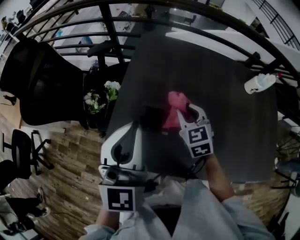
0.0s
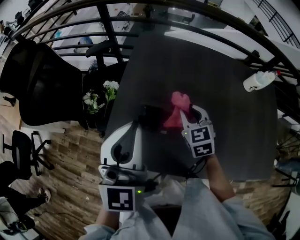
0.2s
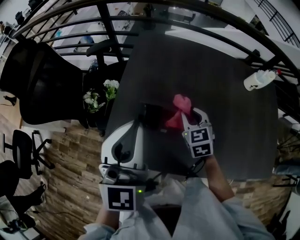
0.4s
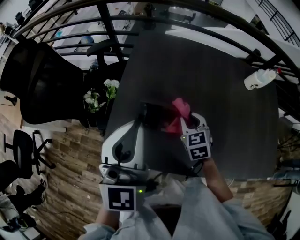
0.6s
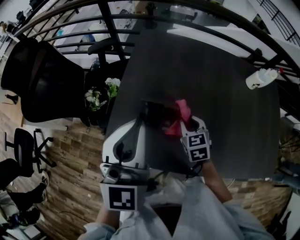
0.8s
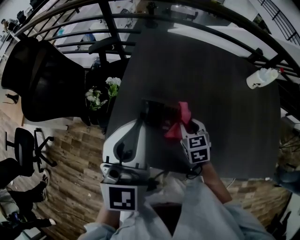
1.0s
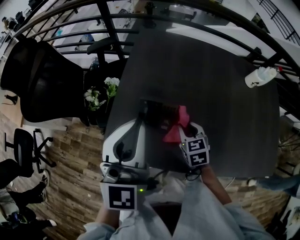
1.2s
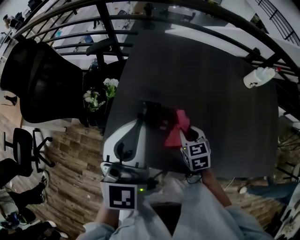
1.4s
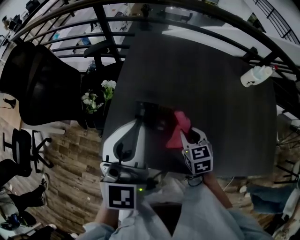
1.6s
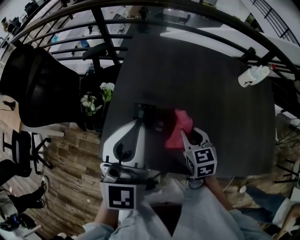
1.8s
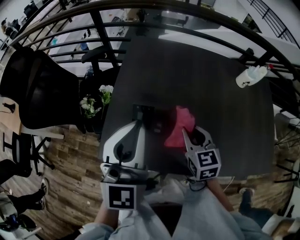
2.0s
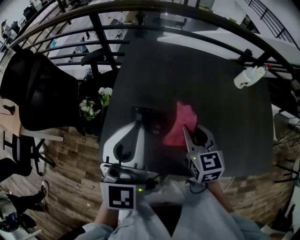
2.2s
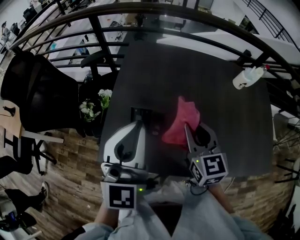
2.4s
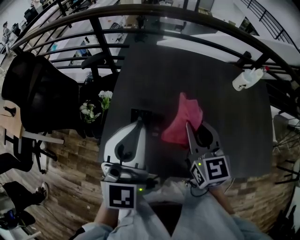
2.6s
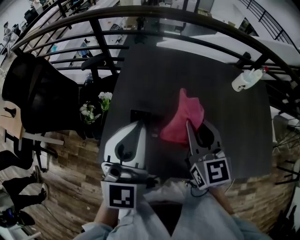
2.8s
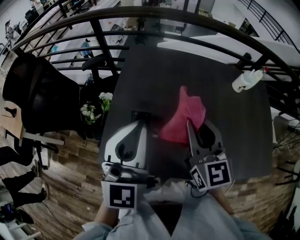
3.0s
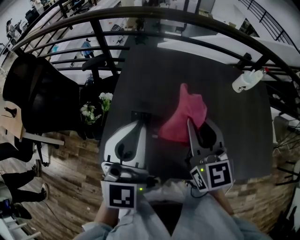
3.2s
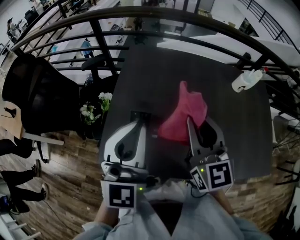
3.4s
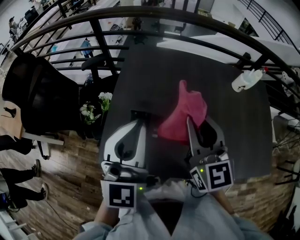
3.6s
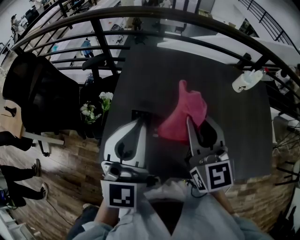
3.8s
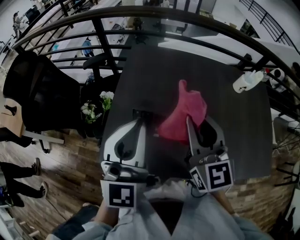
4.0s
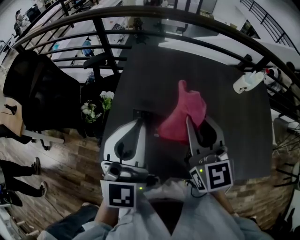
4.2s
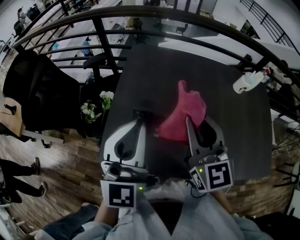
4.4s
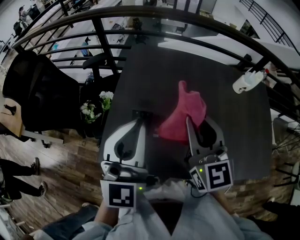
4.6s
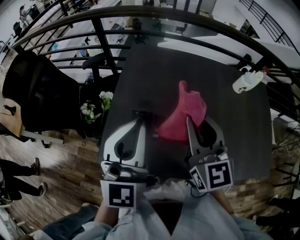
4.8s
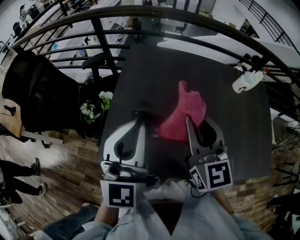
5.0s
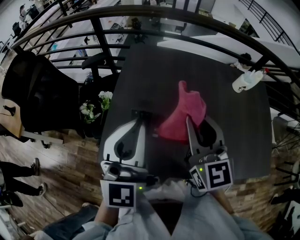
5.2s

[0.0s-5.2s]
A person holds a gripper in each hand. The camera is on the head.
0.0s to 1.8s: The right gripper heads backward and to the right, covering some 10 cm.
1.8s to 3.4s: The right gripper heads upward, covering roughly 20 cm, and tilts its fingers about 30 degrees upward.
3.4s to 5.2s: Neither gripper changes place.

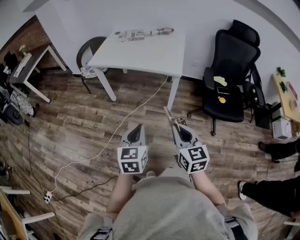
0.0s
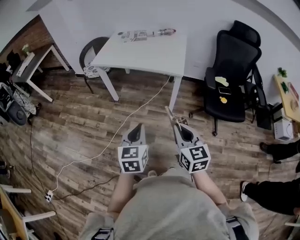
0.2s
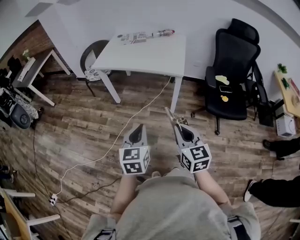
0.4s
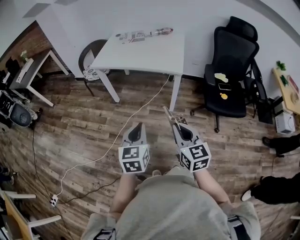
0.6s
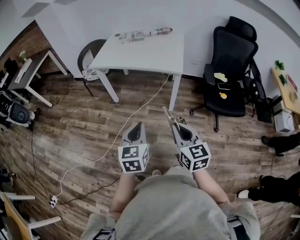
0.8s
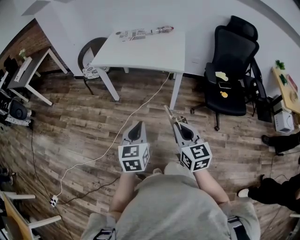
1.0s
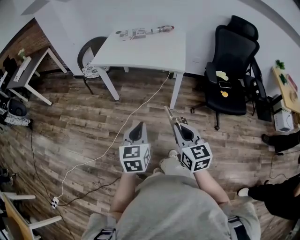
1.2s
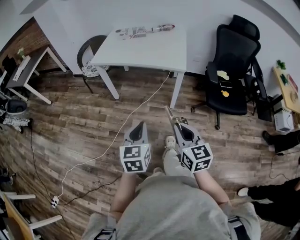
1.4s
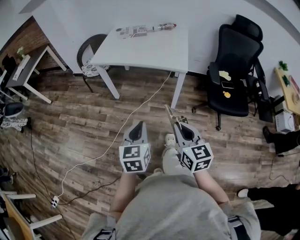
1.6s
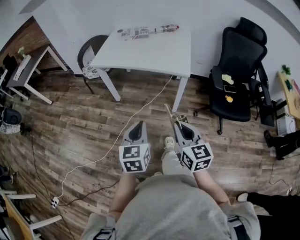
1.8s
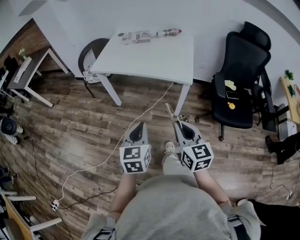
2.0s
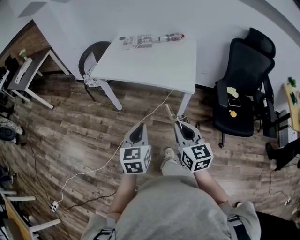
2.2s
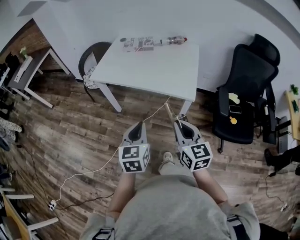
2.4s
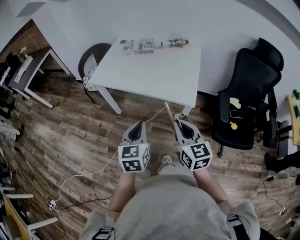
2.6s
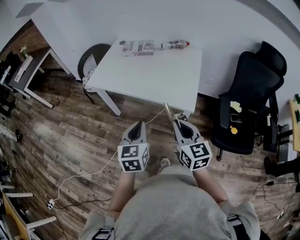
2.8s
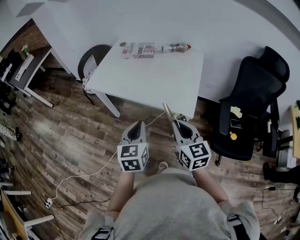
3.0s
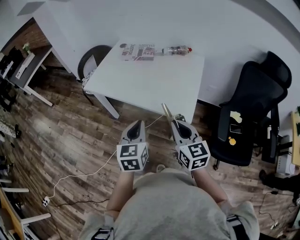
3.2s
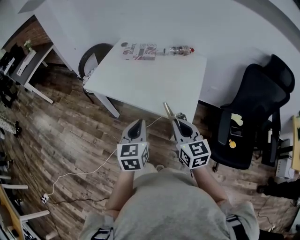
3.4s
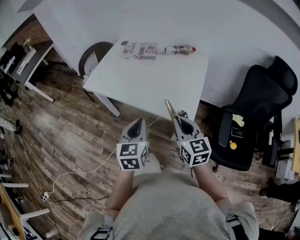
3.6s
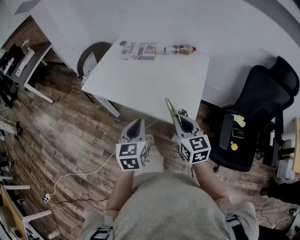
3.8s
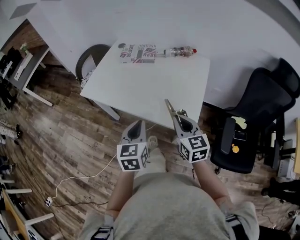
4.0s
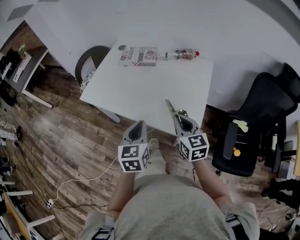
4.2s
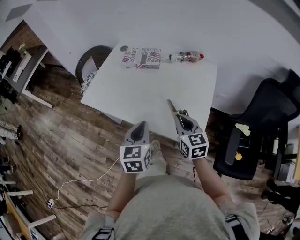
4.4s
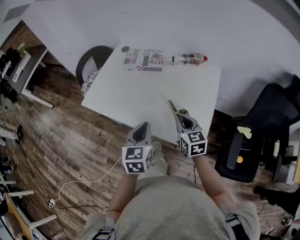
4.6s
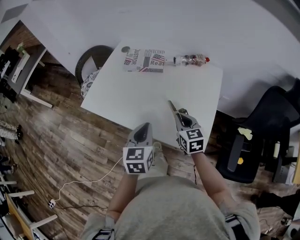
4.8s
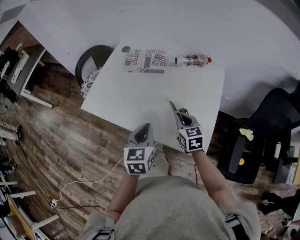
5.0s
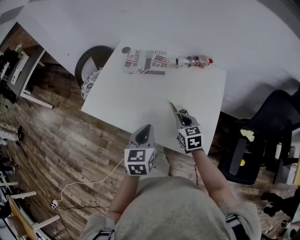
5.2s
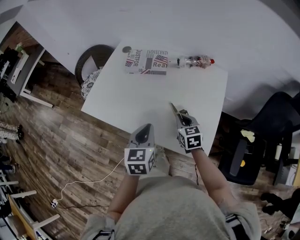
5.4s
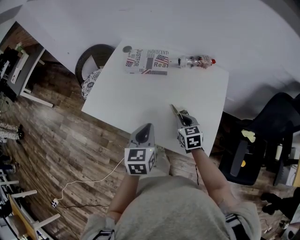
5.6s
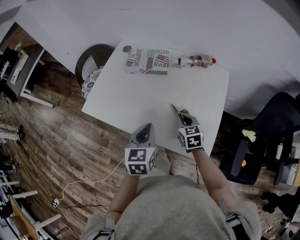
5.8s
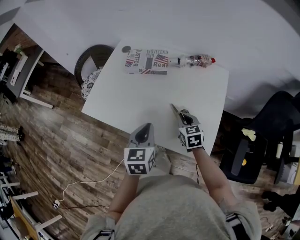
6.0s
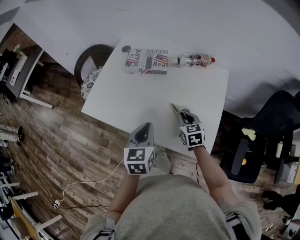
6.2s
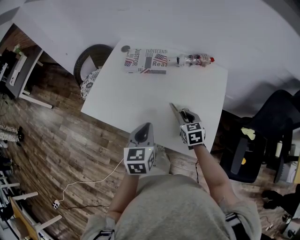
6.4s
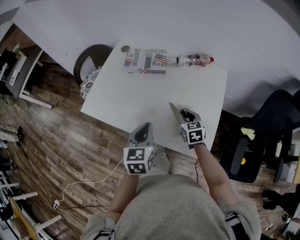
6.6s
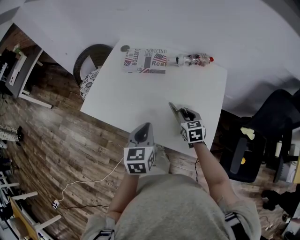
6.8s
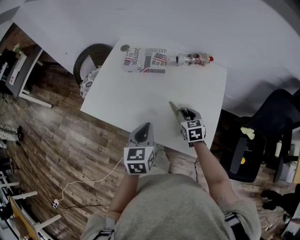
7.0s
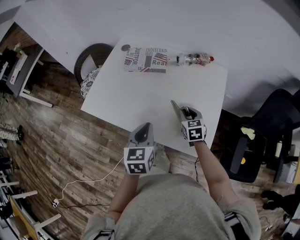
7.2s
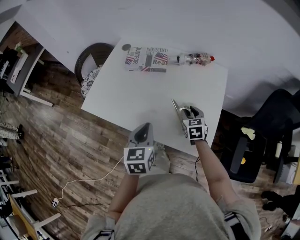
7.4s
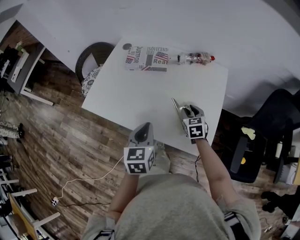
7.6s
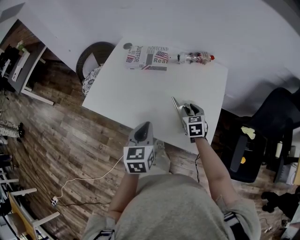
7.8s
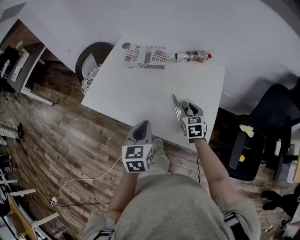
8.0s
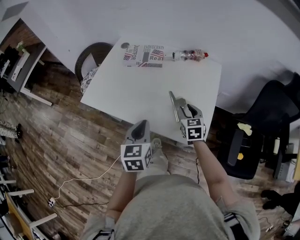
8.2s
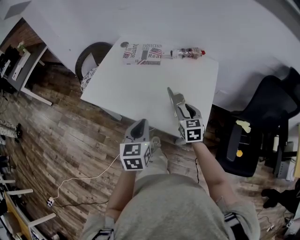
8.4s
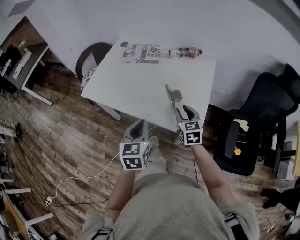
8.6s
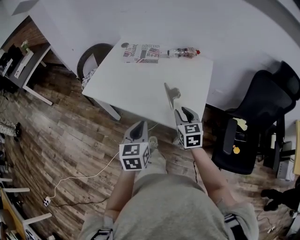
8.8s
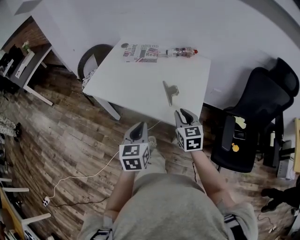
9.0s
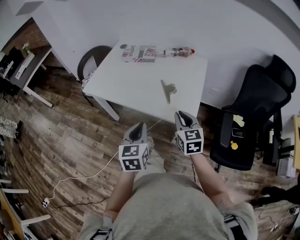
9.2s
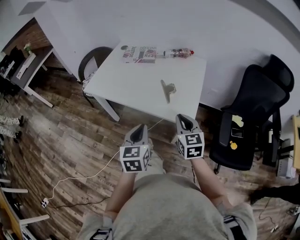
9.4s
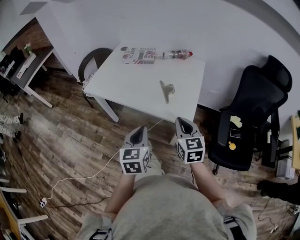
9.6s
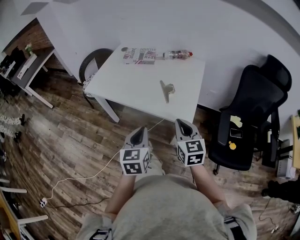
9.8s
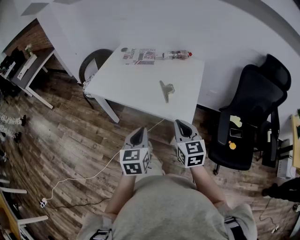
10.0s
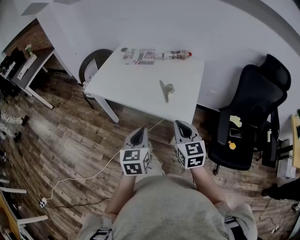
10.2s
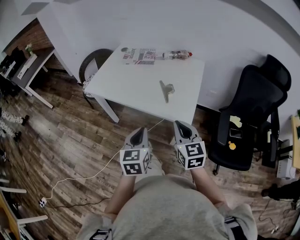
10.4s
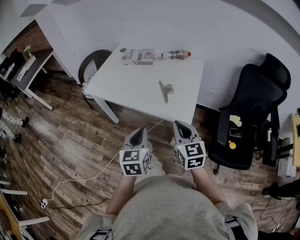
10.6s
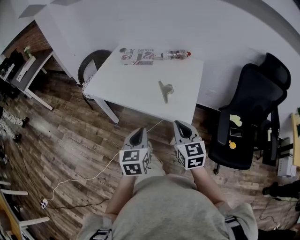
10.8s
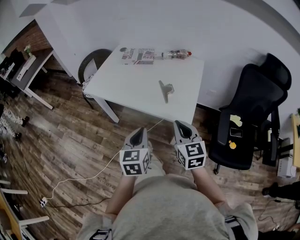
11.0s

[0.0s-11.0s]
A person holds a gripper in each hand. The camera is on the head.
0.0s to 1.6s: The grippers stay close to where they were, moving slightly.
1.6s to 3.2s: Both grippers travel together forward, approximately 35 cm.
3.2s to 4.8s: The left gripper heads forward, covering some 20 cm, while the right gripper goes approximately 30 cm forward and downward.
4.8s to 6.2s: The right gripper heads downward and forward, covering roughly 10 cm.
6.2s to 7.8s: The right gripper opens up.
7.8s to 9.4s: The left gripper goes about 20 cm backward. The right gripper is displaced backward and upward by approximately 30 cm, and closes up.
9.4s to 11.0s: The right gripper ends up about 5 cm from where it was.

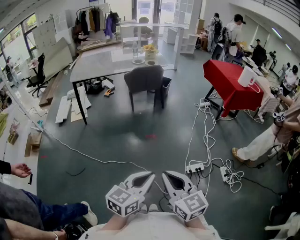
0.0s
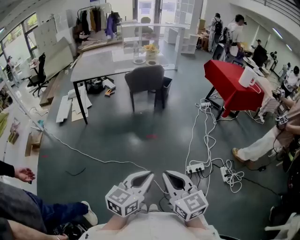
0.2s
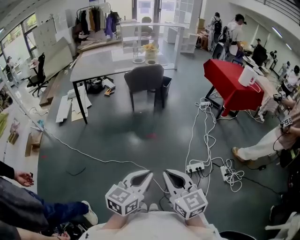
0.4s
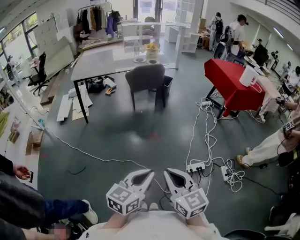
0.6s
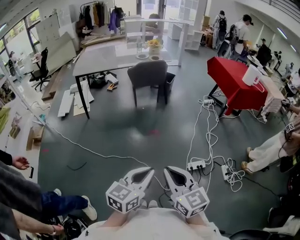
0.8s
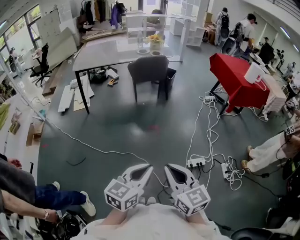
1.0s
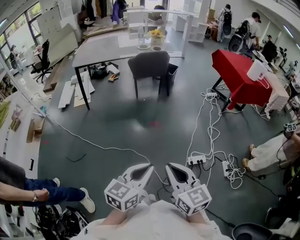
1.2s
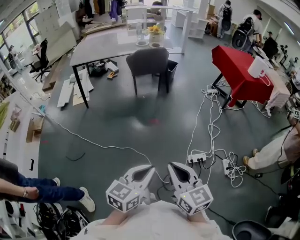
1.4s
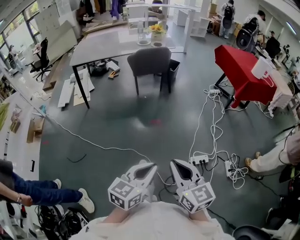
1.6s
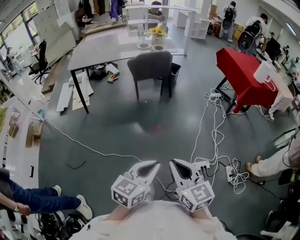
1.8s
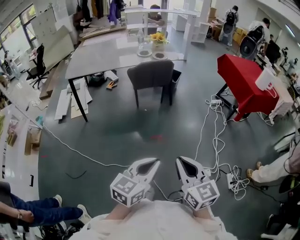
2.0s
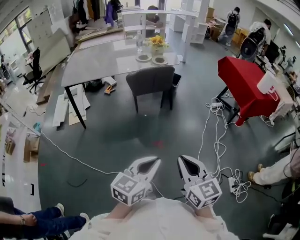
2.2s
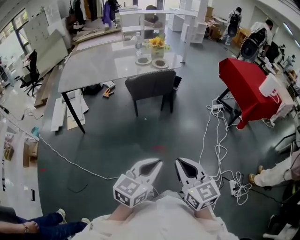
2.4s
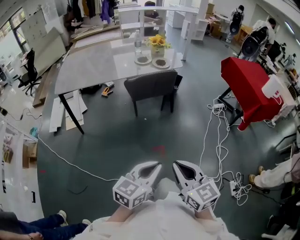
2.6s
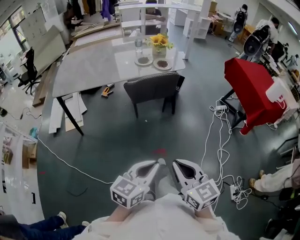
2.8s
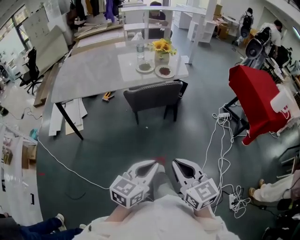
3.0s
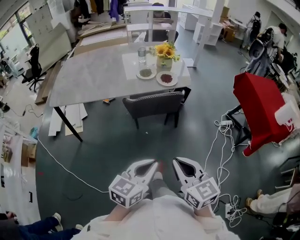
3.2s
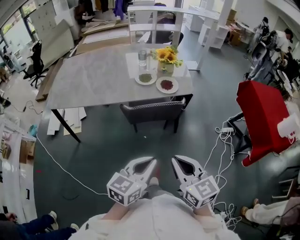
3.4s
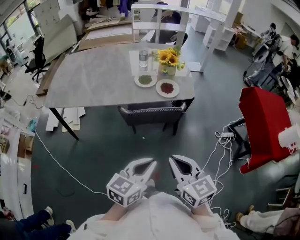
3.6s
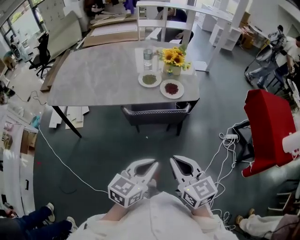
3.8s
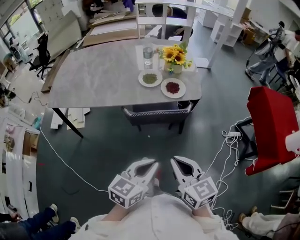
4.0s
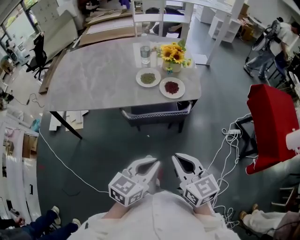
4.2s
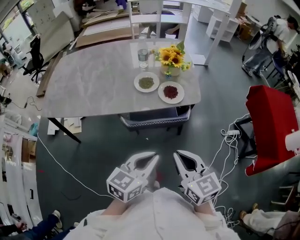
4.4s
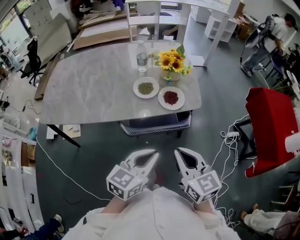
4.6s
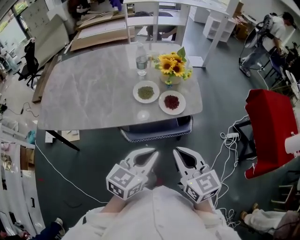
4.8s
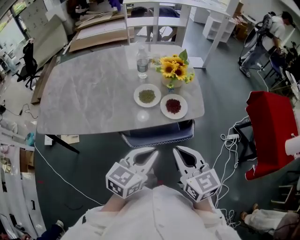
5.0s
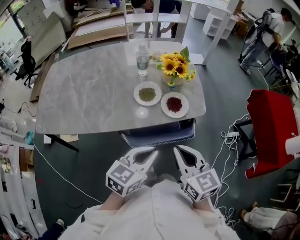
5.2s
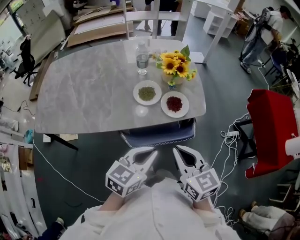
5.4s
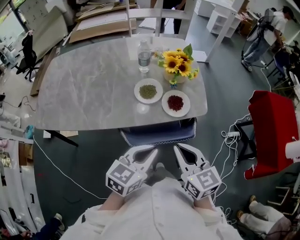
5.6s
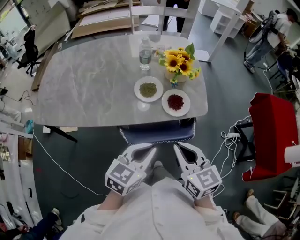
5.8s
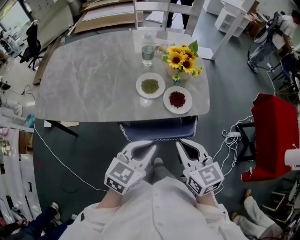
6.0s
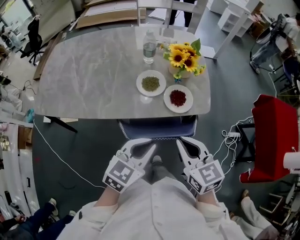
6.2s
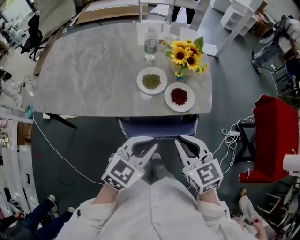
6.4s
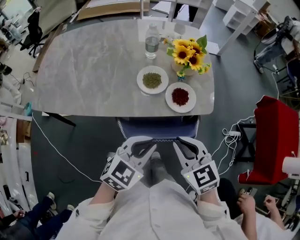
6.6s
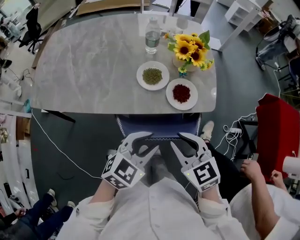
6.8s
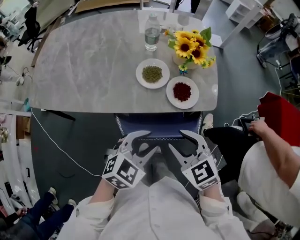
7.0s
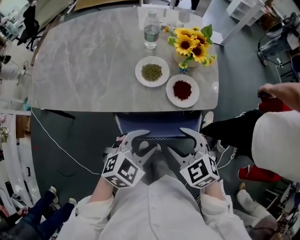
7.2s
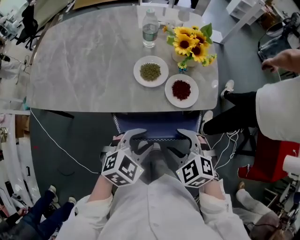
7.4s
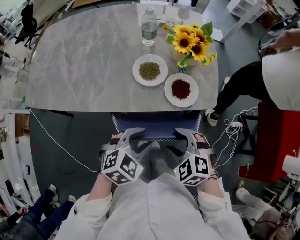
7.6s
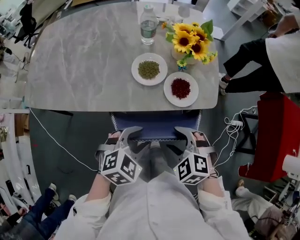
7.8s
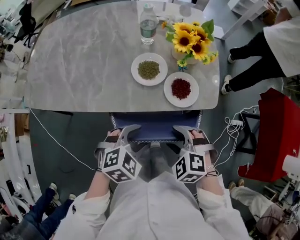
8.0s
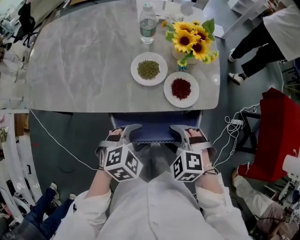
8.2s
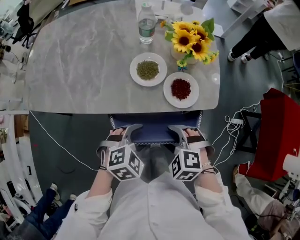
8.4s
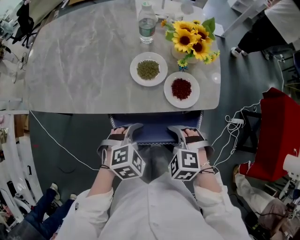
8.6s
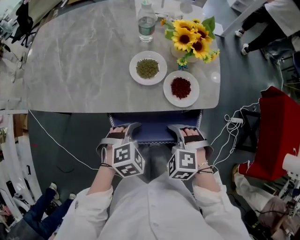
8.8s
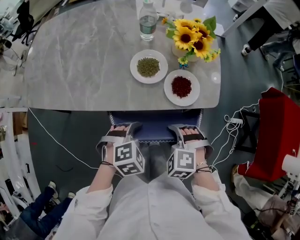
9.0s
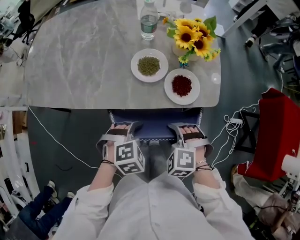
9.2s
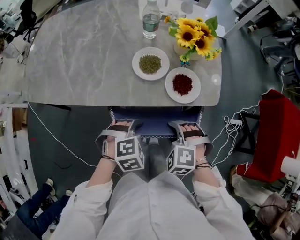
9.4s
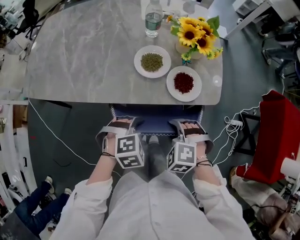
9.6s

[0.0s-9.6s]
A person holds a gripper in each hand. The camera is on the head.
0.0s to 1.6s: The left gripper is displaced forward and downward by approximately 10 cm, while the right gripper goes some 10 cm forward and to the right.
1.6s to 3.2s: The pair of grippers is taken forward, about 60 cm.
3.2s to 4.8s: Both grippers move forward, some 30 cm.
4.8s to 6.4s: Both grippers move forward, about 5 cm.
6.4s to 8.0s: The grippers both shift downward by about 10 cm. The right gripper angles its fingers downward, by about 30 degrees, and opens up; the left gripper turns by some 30 degrees, and opens its fingers.
8.0s to 9.6s: The right gripper closes, while the left gripper moves downward, approximately 5 cm.
